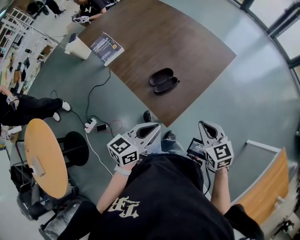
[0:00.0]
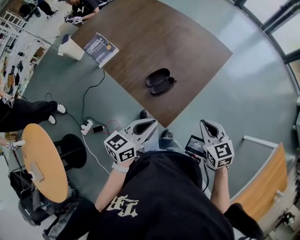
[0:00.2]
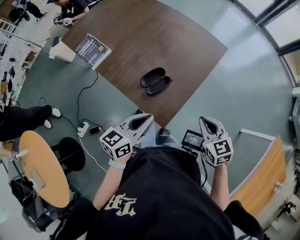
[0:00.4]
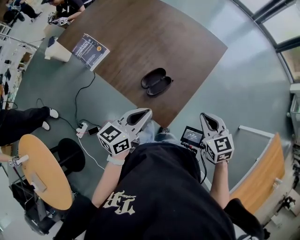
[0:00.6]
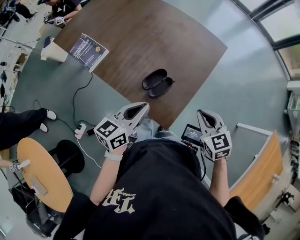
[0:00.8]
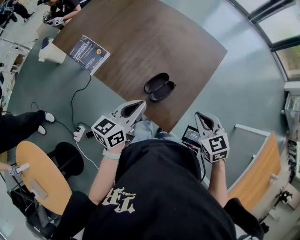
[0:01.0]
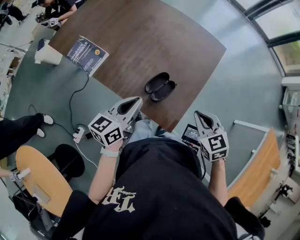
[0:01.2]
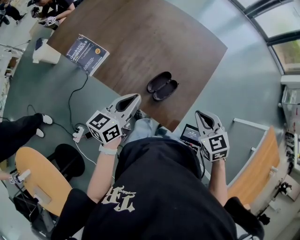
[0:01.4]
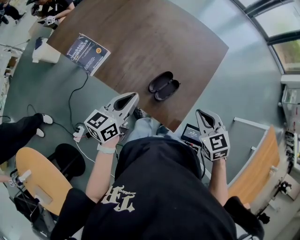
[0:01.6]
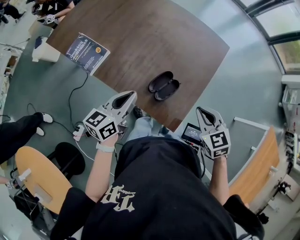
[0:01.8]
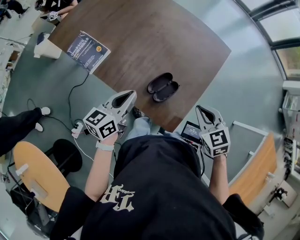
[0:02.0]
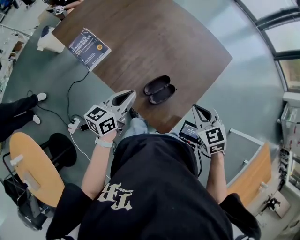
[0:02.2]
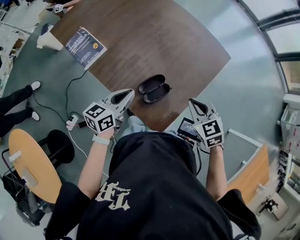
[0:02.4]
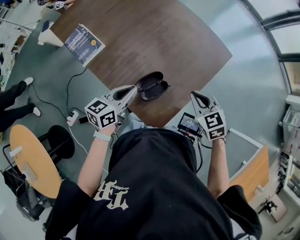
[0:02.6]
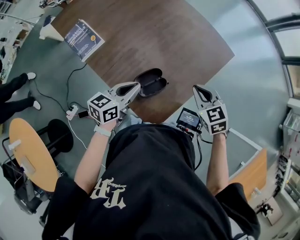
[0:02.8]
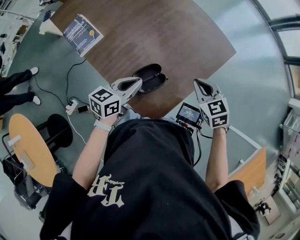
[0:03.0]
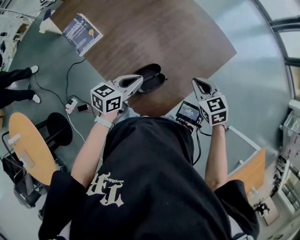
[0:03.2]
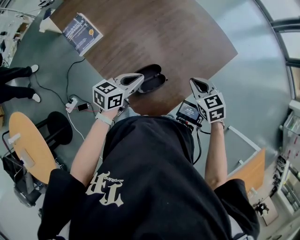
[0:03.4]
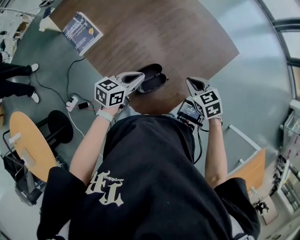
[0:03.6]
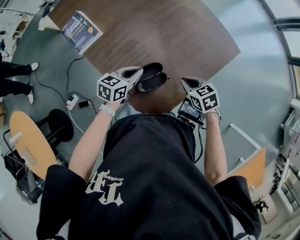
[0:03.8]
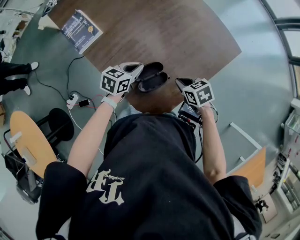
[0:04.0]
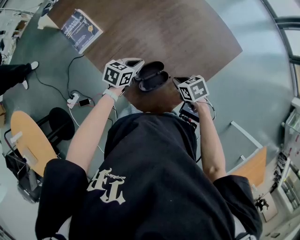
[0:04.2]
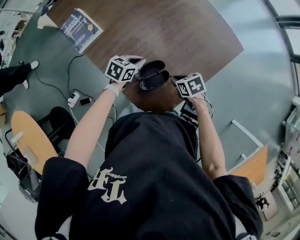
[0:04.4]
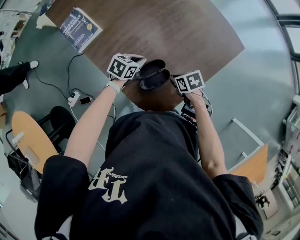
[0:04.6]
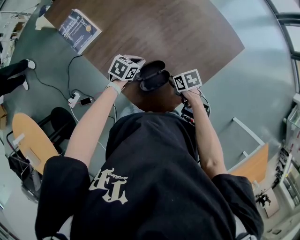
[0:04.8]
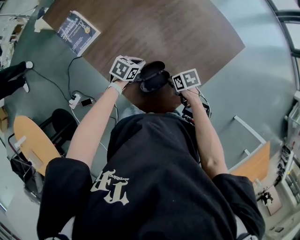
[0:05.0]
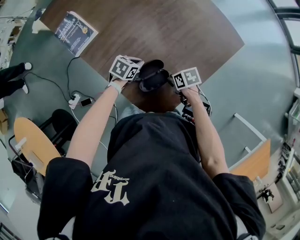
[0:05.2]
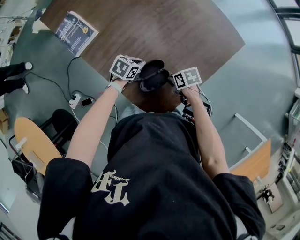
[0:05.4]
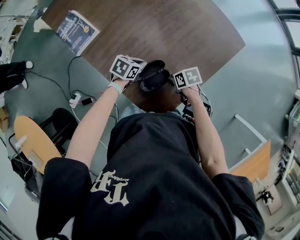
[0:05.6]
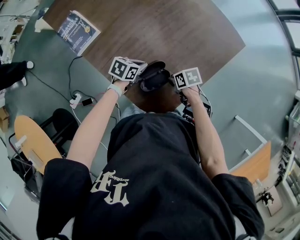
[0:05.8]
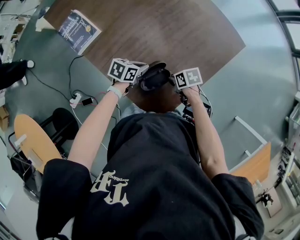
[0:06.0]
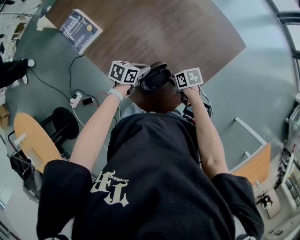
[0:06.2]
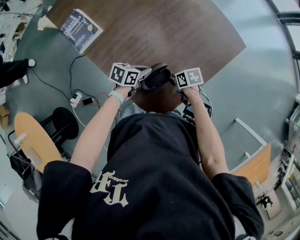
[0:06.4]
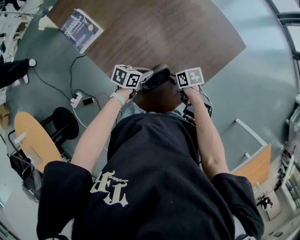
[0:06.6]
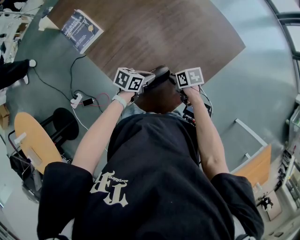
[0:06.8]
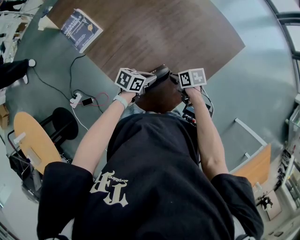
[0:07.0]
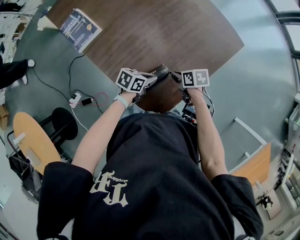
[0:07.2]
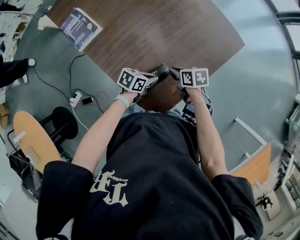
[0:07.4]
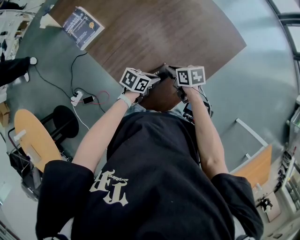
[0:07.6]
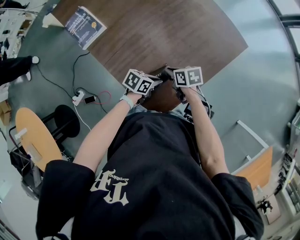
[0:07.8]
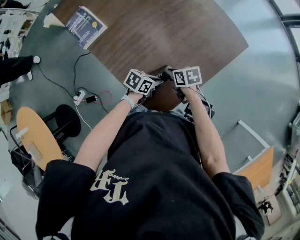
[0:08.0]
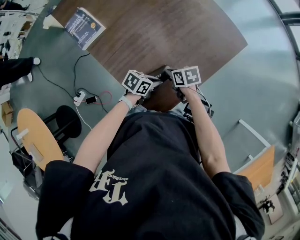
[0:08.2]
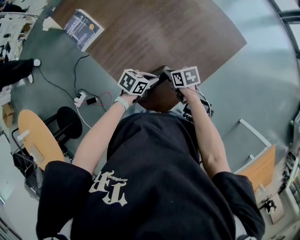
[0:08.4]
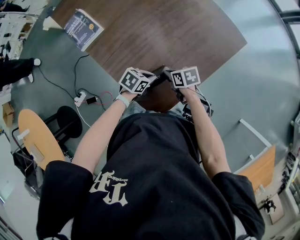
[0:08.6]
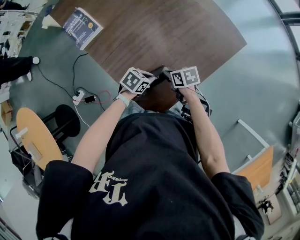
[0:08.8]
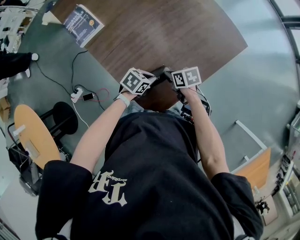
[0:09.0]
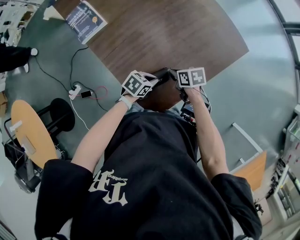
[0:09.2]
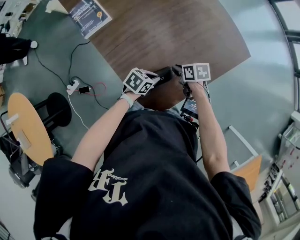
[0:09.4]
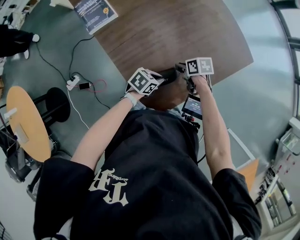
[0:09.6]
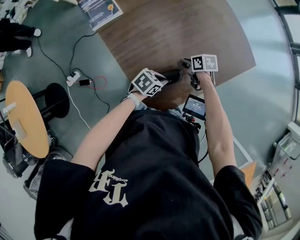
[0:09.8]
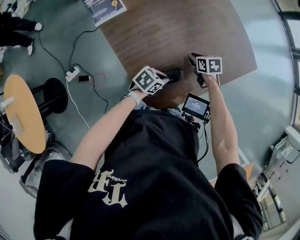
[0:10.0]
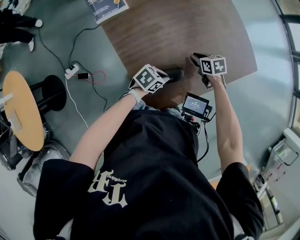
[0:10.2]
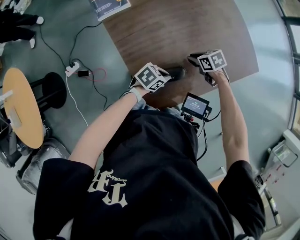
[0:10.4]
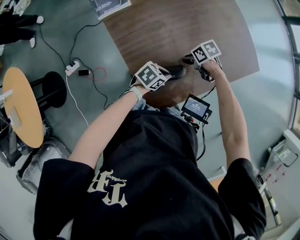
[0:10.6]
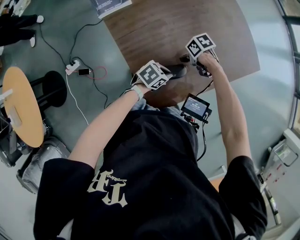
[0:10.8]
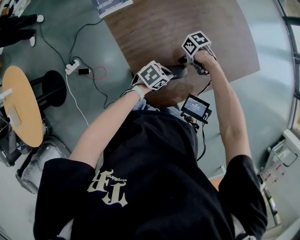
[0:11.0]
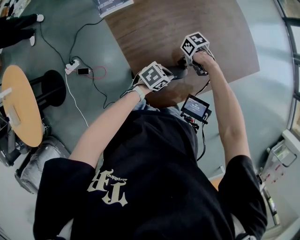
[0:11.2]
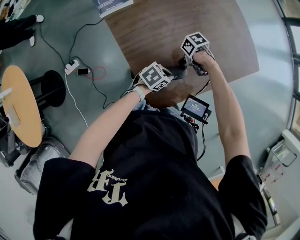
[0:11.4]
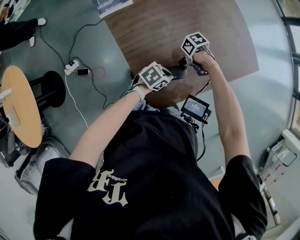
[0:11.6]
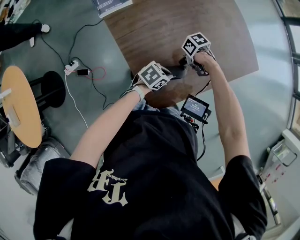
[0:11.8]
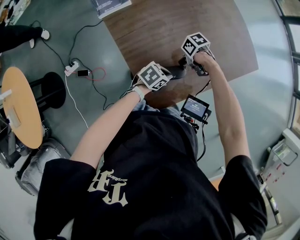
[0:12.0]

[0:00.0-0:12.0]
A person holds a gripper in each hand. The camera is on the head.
0:00.0 to 0:01.6: The left gripper heads to the left and forward, covering approximately 30 cm; the right gripper moves to the left and forward, about 15 cm.
0:01.6 to 0:03.0: The right gripper goes some 15 cm forward and to the right, while the left gripper shifts some 15 cm to the right, downward and forward.
0:03.0 to 0:04.4: The grippers both shift downward by some 15 cm. The left gripper rotates roughly 20 degrees. The right gripper turns by roughly 40 degrees.
0:04.4 to 0:06.0: The right gripper shifts about 5 cm downward.
0:06.0 to 0:07.6: The right gripper travels upward by some 5 cm, while the left gripper shifts by some 10 cm.
0:07.6 to 0:09.0: The grippers move only a little.
0:09.0 to 0:10.4: The right gripper ends up approximately 10 cm from where it was, and changes its angle by approximately 30 degrees.
0:10.4 to 0:12.0: The right gripper moves approximately 5 cm, and turns by approximately 30 degrees.

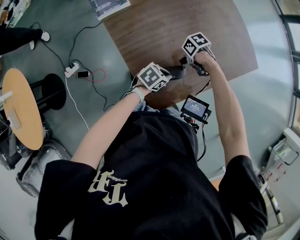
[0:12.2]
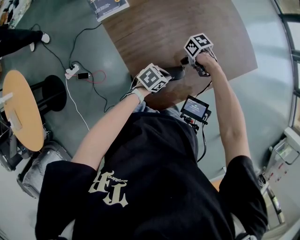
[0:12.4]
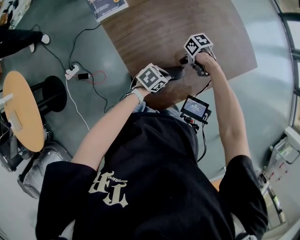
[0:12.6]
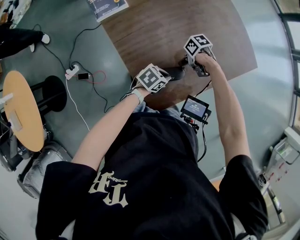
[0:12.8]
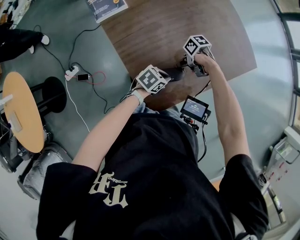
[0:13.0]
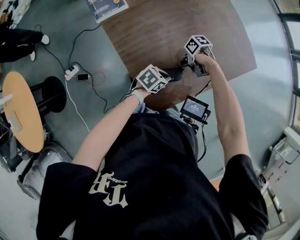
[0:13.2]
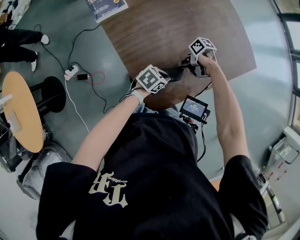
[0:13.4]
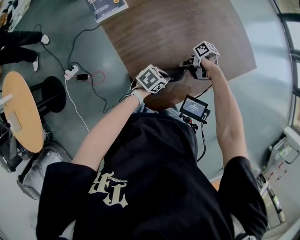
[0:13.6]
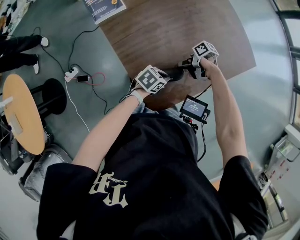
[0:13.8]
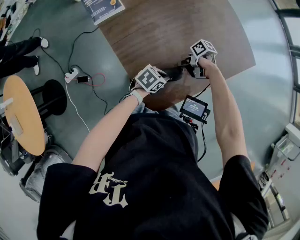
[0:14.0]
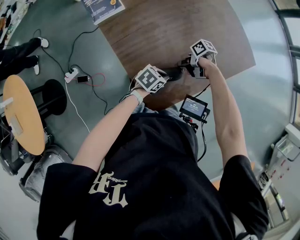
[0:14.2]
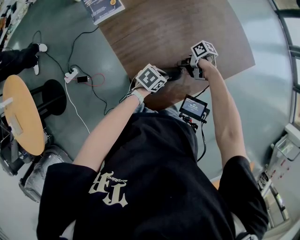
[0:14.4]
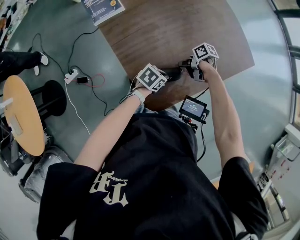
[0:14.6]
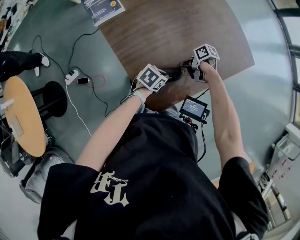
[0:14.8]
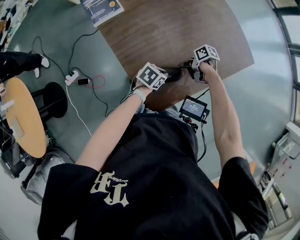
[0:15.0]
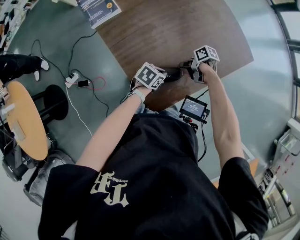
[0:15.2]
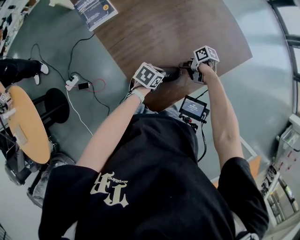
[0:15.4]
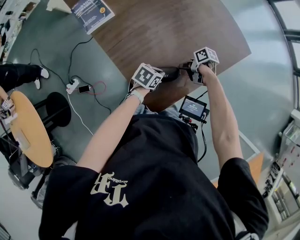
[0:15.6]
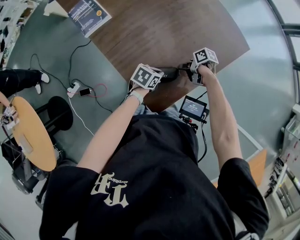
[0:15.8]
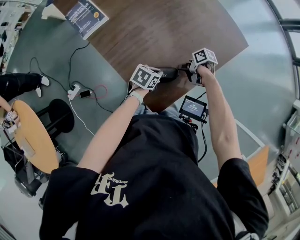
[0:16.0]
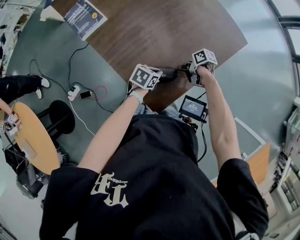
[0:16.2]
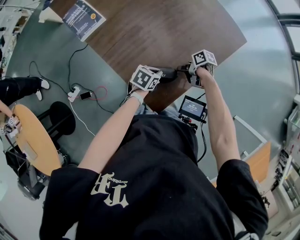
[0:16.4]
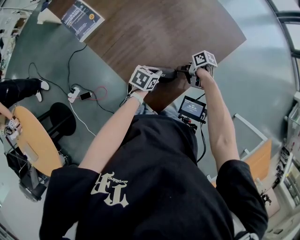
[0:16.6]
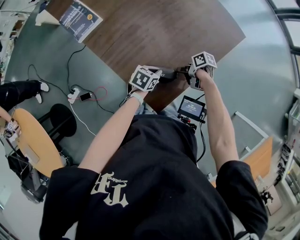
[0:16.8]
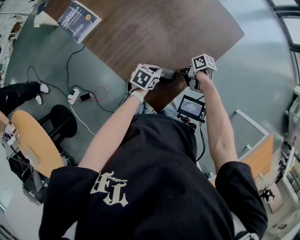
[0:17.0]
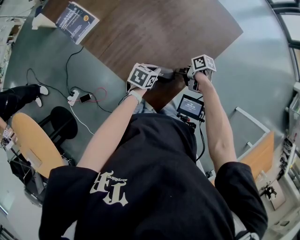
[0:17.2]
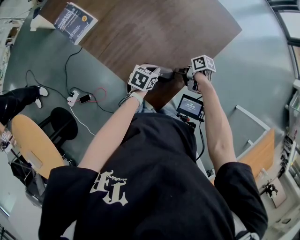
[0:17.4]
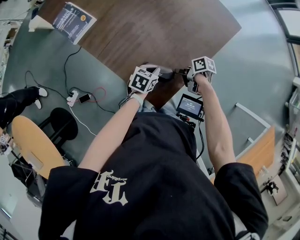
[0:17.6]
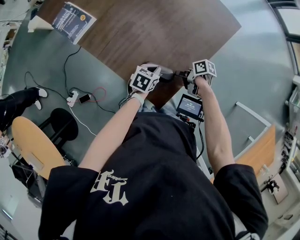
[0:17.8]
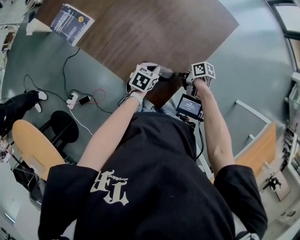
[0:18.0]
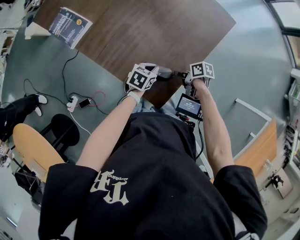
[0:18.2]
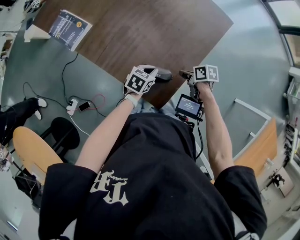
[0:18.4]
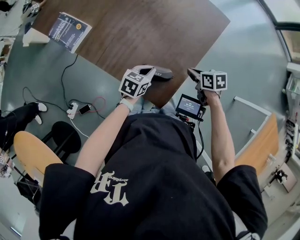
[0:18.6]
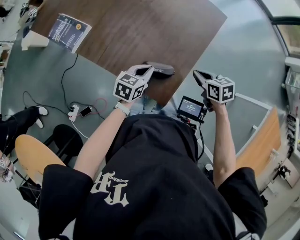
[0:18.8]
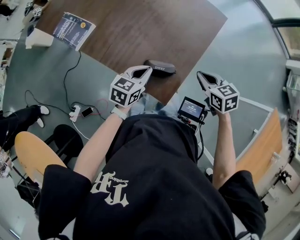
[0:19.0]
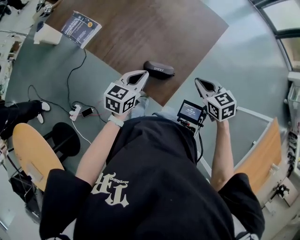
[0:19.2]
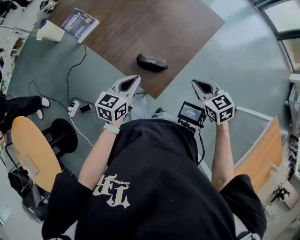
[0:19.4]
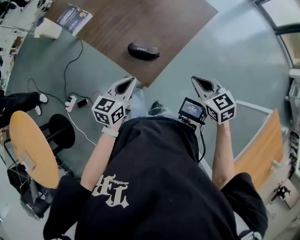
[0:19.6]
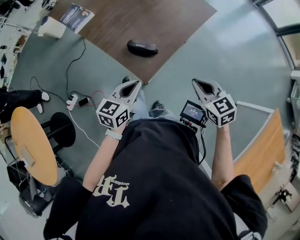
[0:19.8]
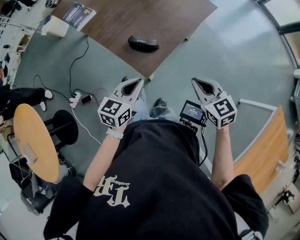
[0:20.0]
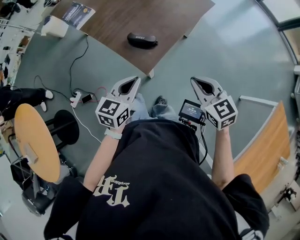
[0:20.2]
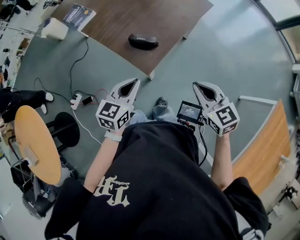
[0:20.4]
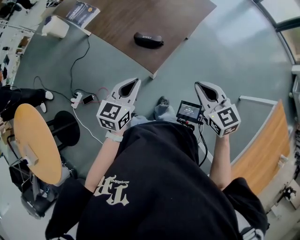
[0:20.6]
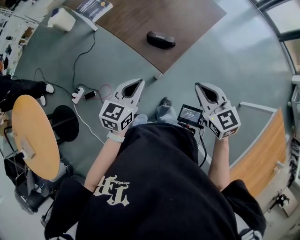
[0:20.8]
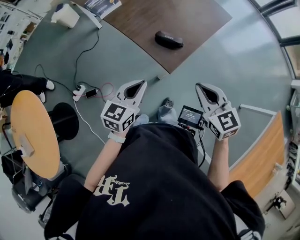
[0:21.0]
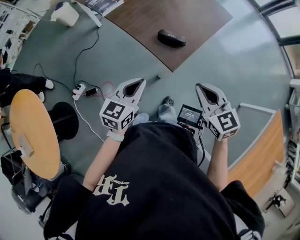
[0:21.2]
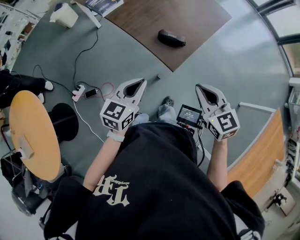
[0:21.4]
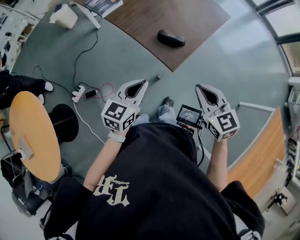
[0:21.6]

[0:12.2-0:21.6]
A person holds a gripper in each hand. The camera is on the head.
0:12.2 to 0:13.8: The right gripper changes its angle by about 40 degrees.
0:13.8 to 0:15.4: The grippers make only small movements.
0:15.4 to 0:17.0: The right gripper moves approximately 5 cm.
0:17.0 to 0:18.4: The right gripper shifts by about 5 cm, and turns by approximately 20 degrees.
0:18.4 to 0:20.0: The right gripper shifts by approximately 35 cm, and twists approximately 50 degrees counterclockwise, seen from behind. Meanwhile the left gripper ends up approximately 30 cm from where it was, and changes its angle by approximately 30 degrees.
0:20.0 to 0:21.6: Both grippers travel together to the left and backward, some 15 cm.

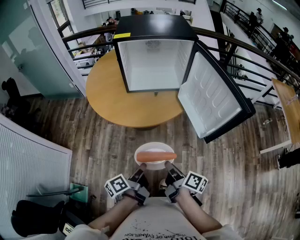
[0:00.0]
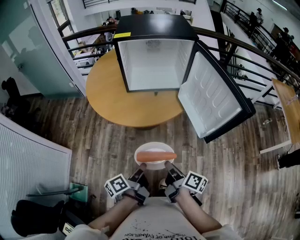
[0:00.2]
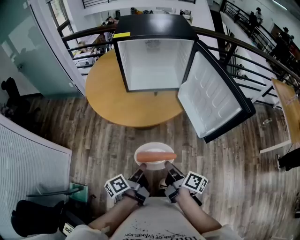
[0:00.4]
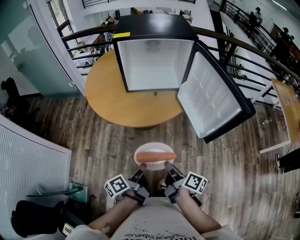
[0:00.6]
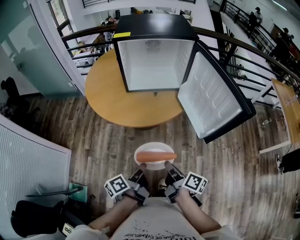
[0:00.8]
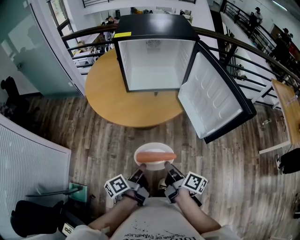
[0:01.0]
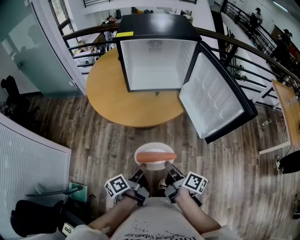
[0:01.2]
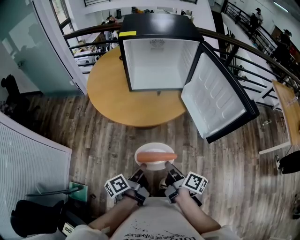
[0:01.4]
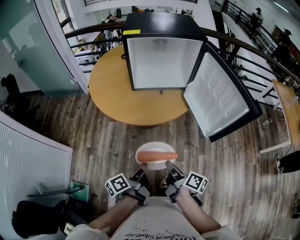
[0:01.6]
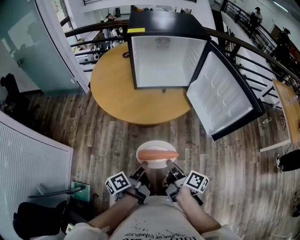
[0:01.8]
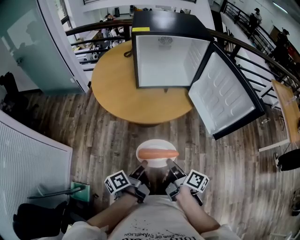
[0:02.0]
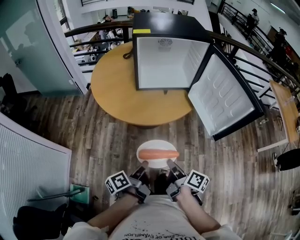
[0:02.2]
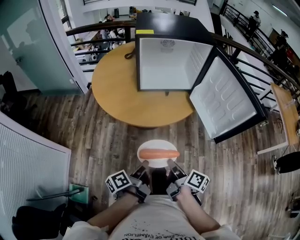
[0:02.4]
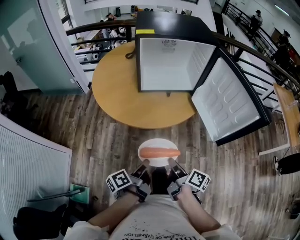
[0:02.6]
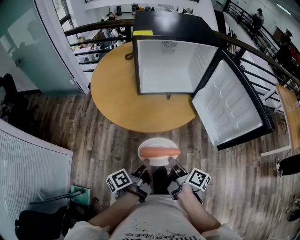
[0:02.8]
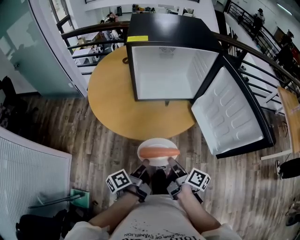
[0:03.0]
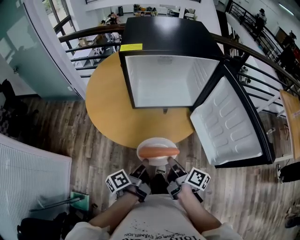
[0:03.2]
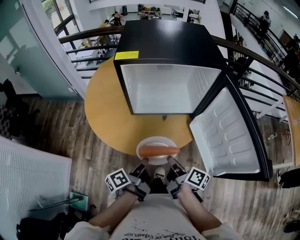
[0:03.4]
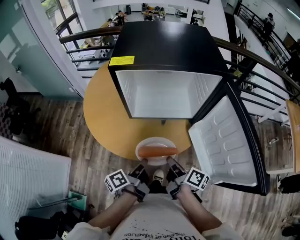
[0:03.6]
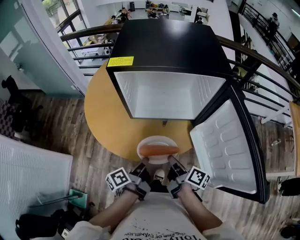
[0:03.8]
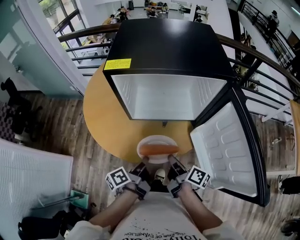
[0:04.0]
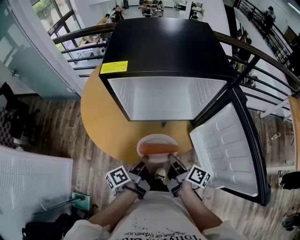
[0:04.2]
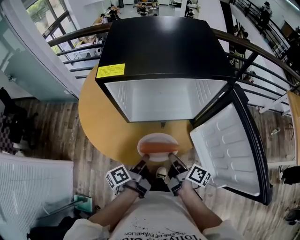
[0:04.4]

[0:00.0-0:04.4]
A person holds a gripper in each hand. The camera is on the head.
0:01.4 to 0:03.0: The right gripper moves some 15 cm.
0:03.0 to 0:04.4: The right gripper shifts by roughly 20 cm.
